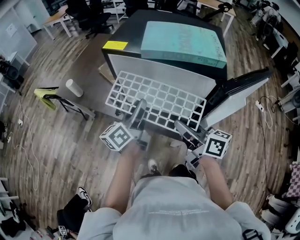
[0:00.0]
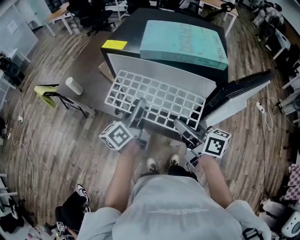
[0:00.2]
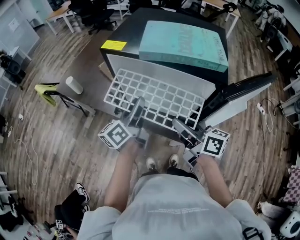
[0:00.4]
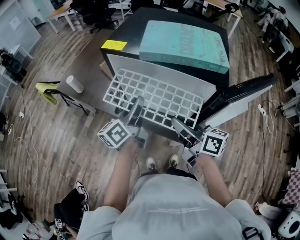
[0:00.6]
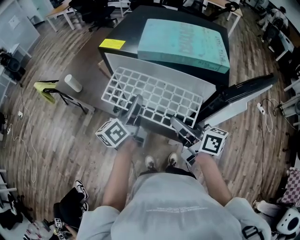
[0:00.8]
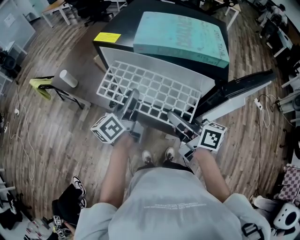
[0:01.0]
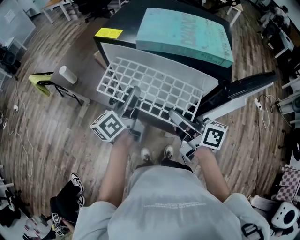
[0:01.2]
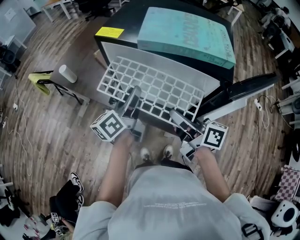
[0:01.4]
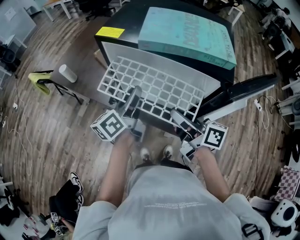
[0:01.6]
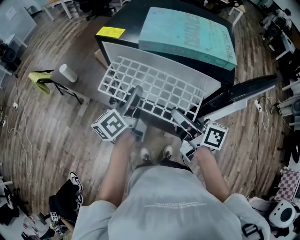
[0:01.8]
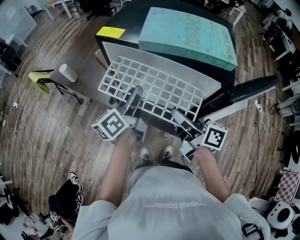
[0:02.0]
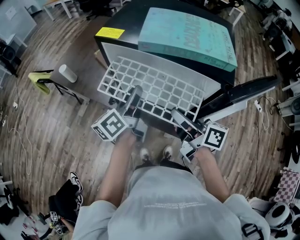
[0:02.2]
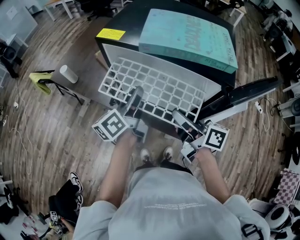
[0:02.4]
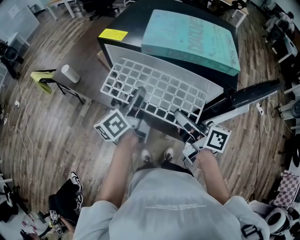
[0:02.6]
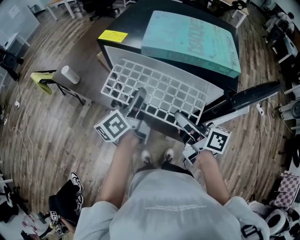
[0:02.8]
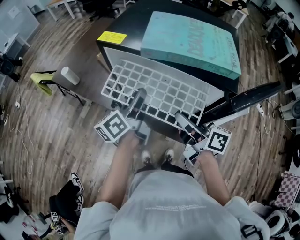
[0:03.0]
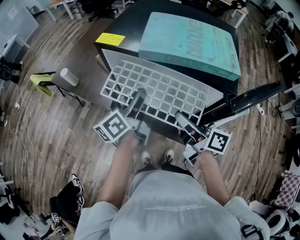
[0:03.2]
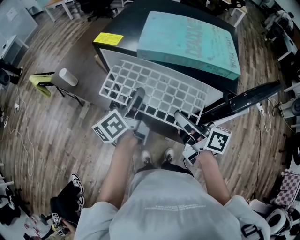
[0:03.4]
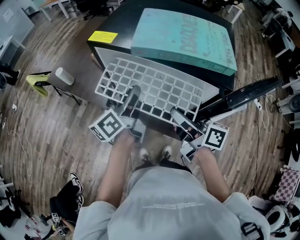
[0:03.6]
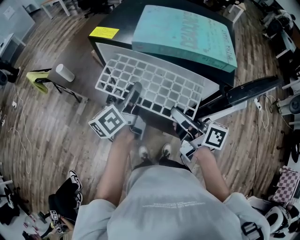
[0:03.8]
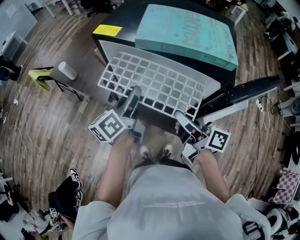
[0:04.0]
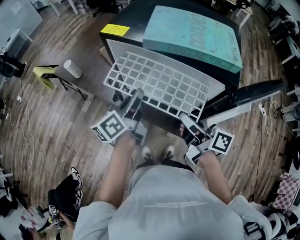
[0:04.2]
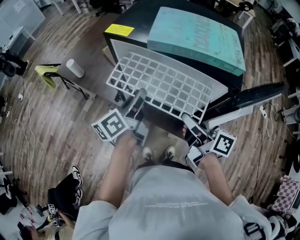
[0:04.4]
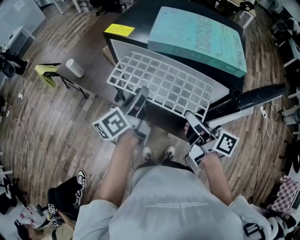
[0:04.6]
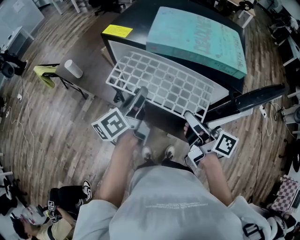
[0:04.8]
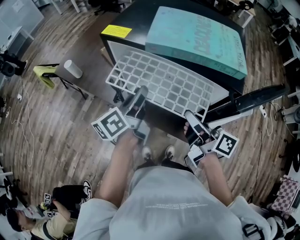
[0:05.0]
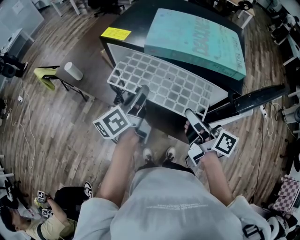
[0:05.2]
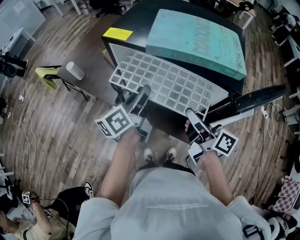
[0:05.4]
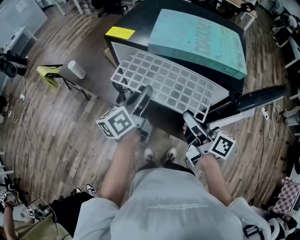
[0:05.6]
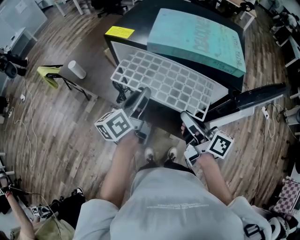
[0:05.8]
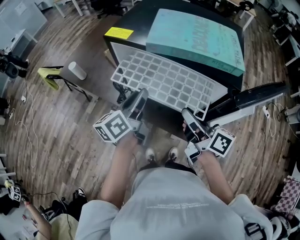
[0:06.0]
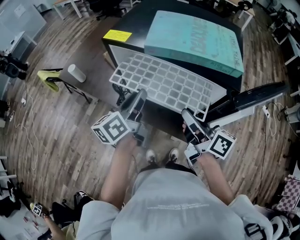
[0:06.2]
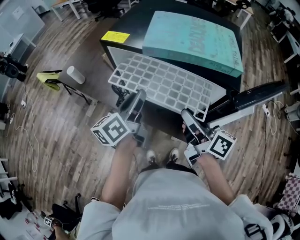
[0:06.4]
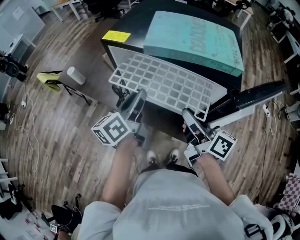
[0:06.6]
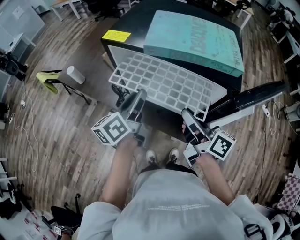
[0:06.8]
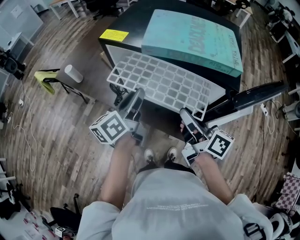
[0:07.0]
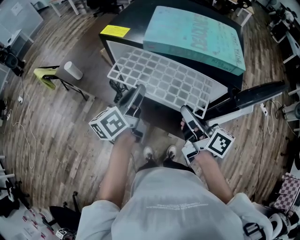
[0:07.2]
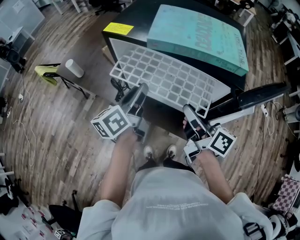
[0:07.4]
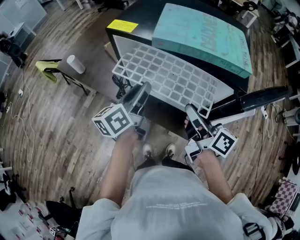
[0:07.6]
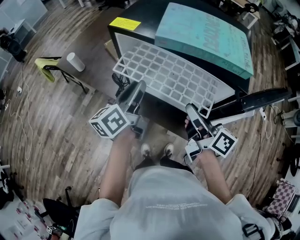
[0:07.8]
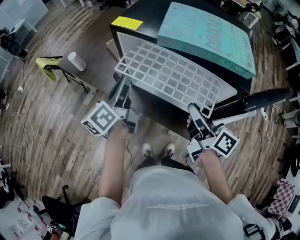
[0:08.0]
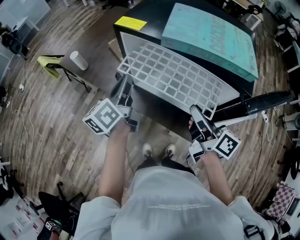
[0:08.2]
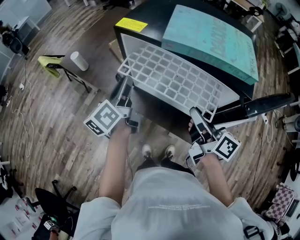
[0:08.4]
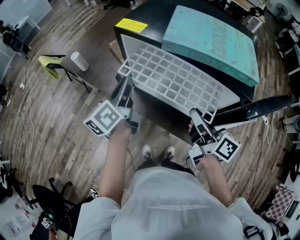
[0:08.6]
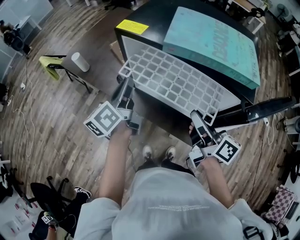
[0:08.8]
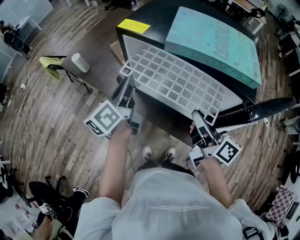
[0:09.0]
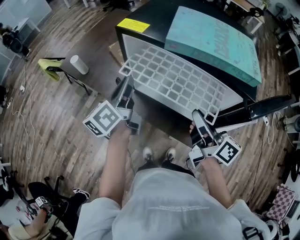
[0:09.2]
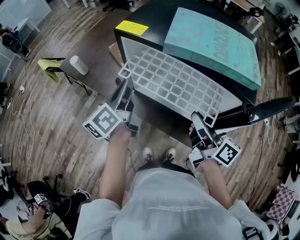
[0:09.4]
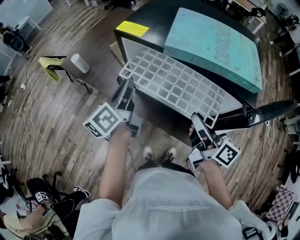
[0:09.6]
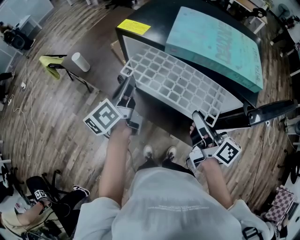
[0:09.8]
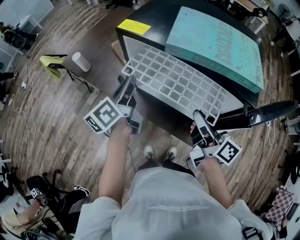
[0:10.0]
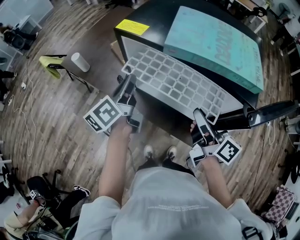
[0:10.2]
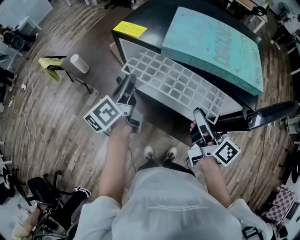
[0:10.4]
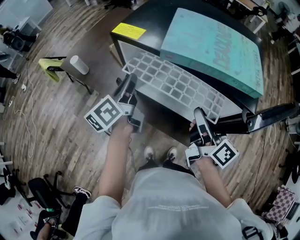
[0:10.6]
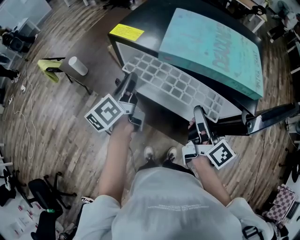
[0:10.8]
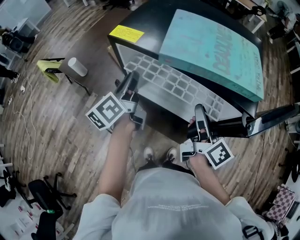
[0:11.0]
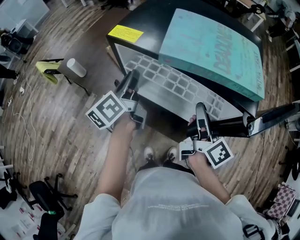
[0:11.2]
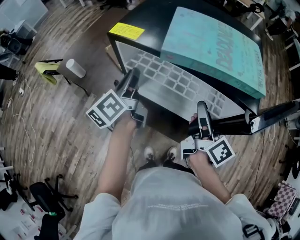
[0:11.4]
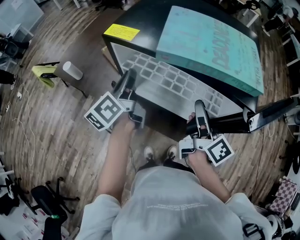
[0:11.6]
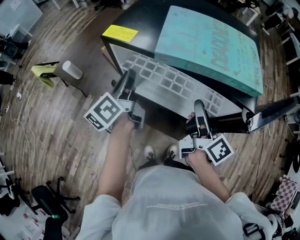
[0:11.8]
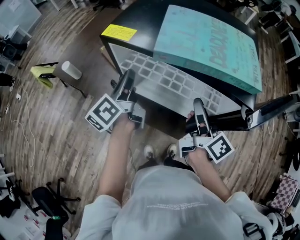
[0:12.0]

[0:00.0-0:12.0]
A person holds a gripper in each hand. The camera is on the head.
0:00.0 to 0:04.4: There are only small adjustments of the grippers.
0:04.4 to 0:07.6: The grippers stay close to where they were, moving slightly.
0:07.6 to 0:09.0: The left gripper shifts about 10 cm to the left.
0:09.0 to 0:10.4: The grippers move only a little.
0:10.4 to 0:12.0: The grippers move only a little.

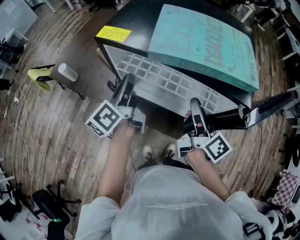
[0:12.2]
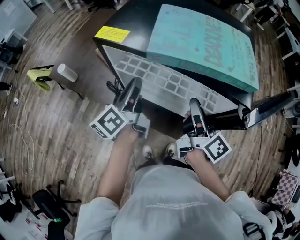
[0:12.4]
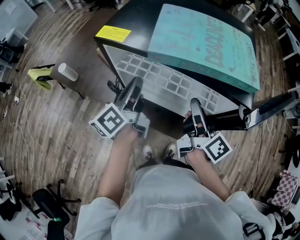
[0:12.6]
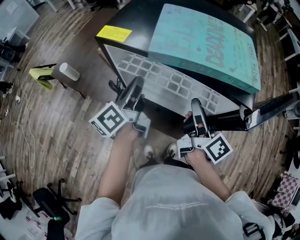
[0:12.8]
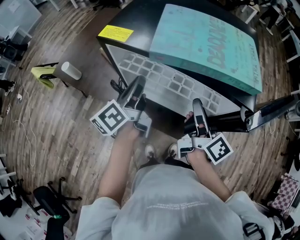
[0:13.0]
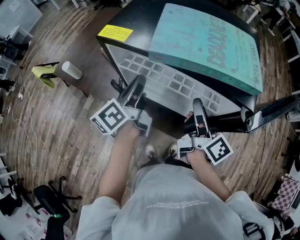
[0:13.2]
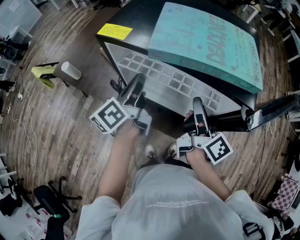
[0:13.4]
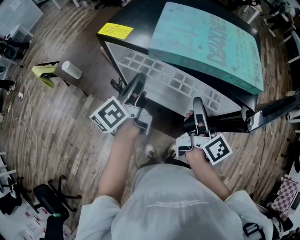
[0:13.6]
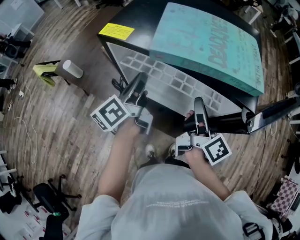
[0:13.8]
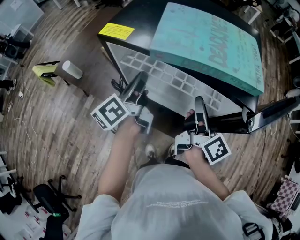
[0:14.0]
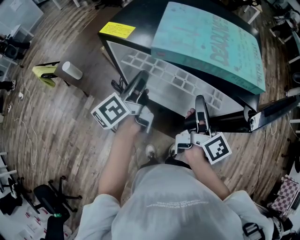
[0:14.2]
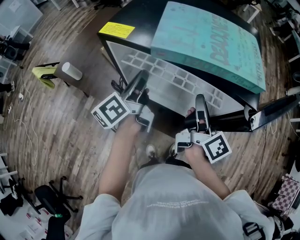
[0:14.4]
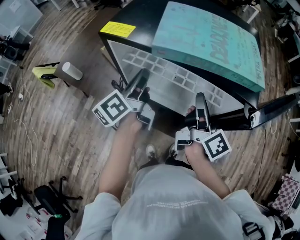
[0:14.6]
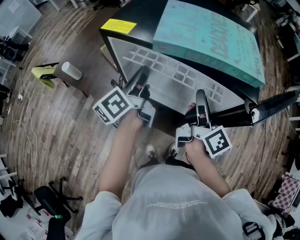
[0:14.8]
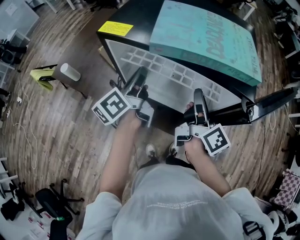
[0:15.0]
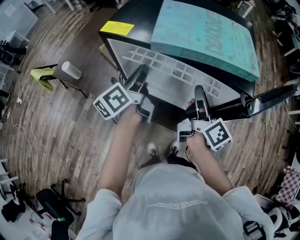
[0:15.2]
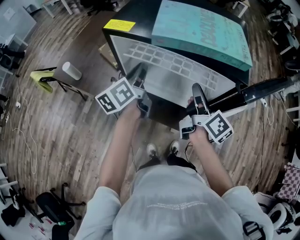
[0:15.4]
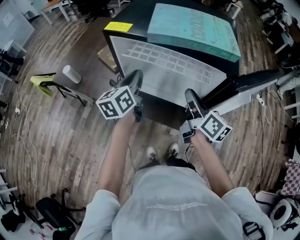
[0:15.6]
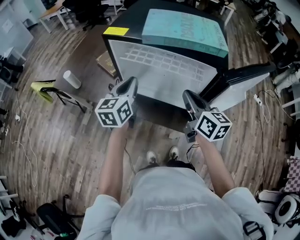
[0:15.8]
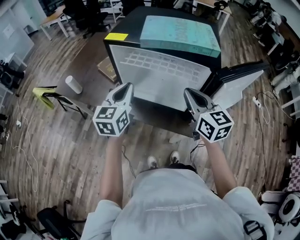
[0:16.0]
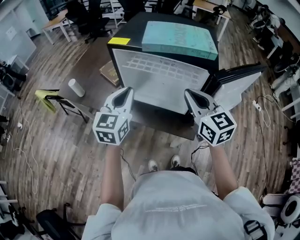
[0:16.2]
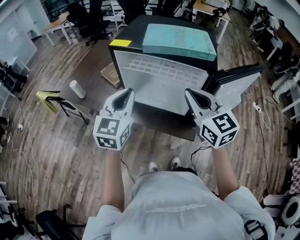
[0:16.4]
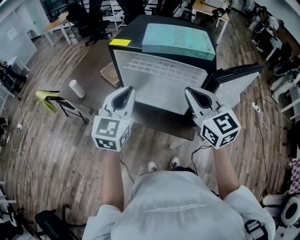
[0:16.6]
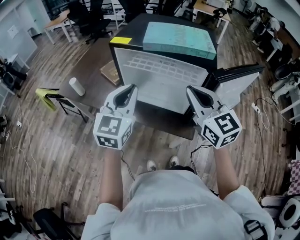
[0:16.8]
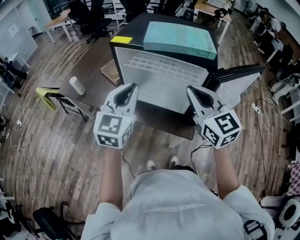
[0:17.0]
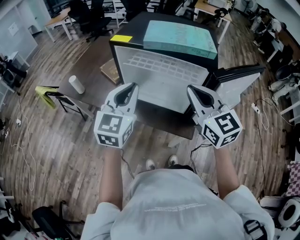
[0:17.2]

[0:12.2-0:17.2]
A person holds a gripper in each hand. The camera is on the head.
0:12.2 to 0:13.8: The grippers make only small movements.
0:13.8 to 0:15.6: The left gripper turns by roughly 30 degrees.
0:15.6 to 0:17.2: The left gripper goes some 15 cm backward and upward, and twists roughly 40 degrees clockwise, seen from behind. The right gripper travels upward and backward by roughly 15 cm, and twists about 60 degrees counterclockwise, seen from behind.

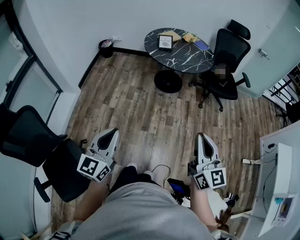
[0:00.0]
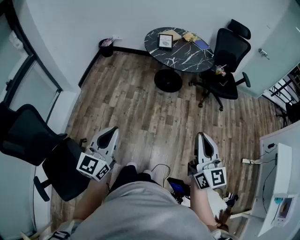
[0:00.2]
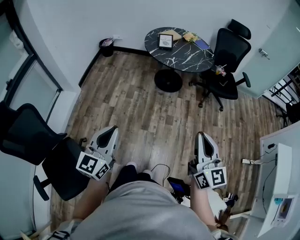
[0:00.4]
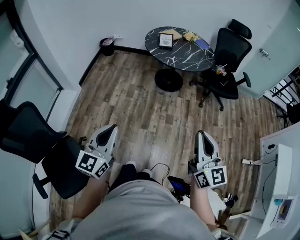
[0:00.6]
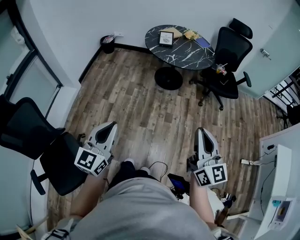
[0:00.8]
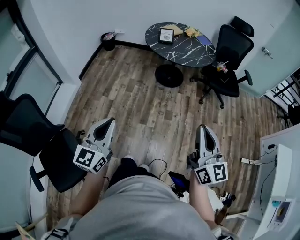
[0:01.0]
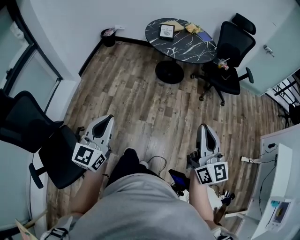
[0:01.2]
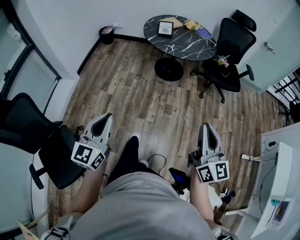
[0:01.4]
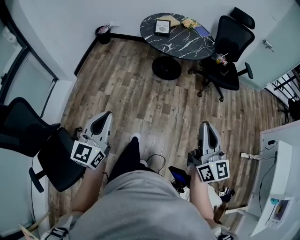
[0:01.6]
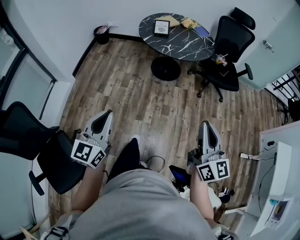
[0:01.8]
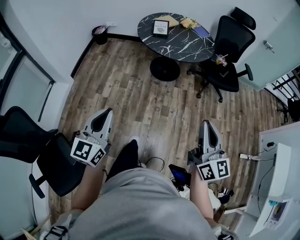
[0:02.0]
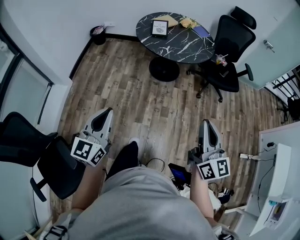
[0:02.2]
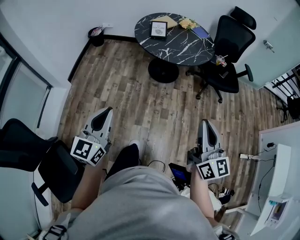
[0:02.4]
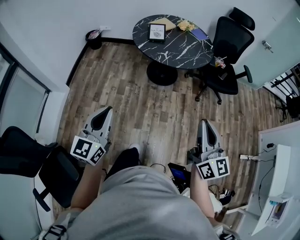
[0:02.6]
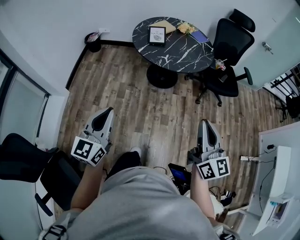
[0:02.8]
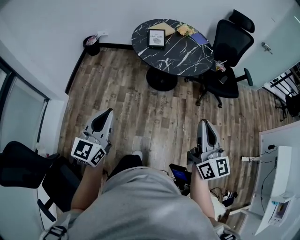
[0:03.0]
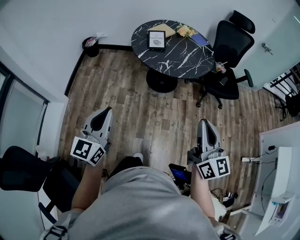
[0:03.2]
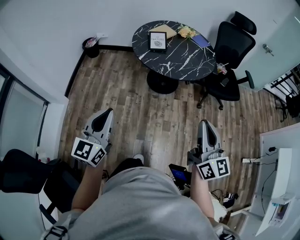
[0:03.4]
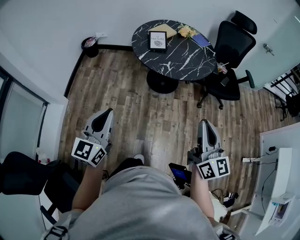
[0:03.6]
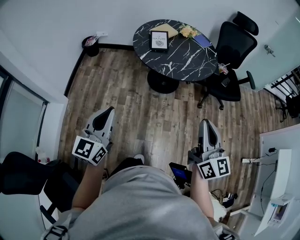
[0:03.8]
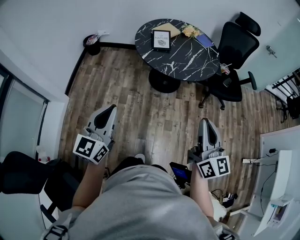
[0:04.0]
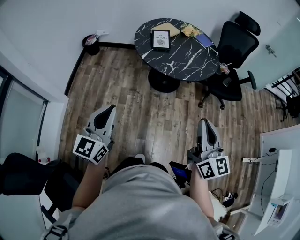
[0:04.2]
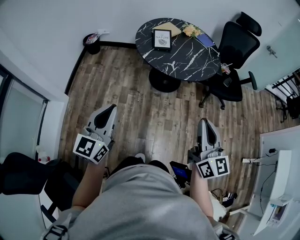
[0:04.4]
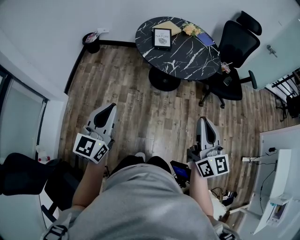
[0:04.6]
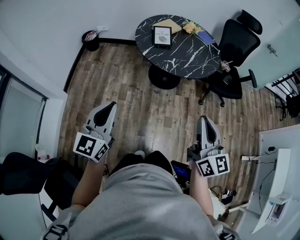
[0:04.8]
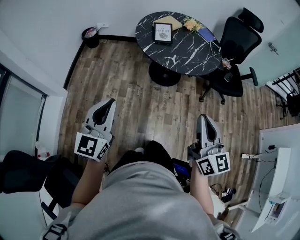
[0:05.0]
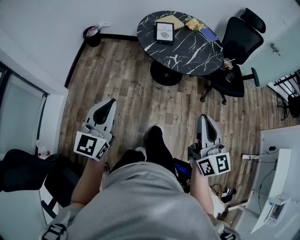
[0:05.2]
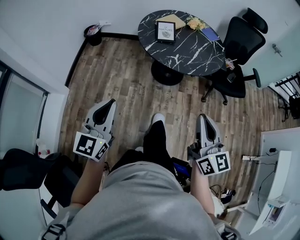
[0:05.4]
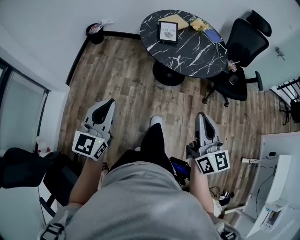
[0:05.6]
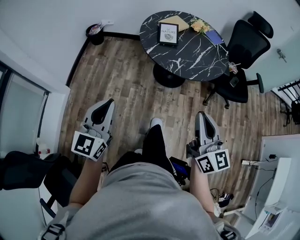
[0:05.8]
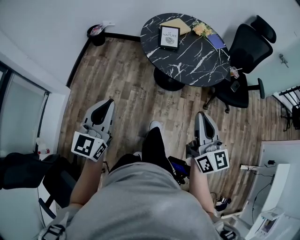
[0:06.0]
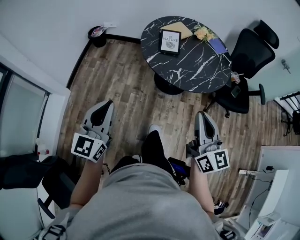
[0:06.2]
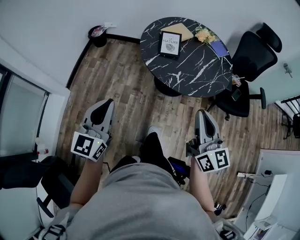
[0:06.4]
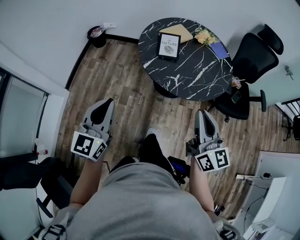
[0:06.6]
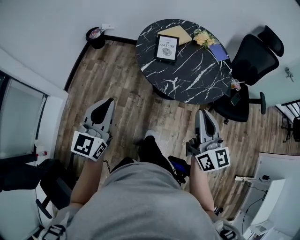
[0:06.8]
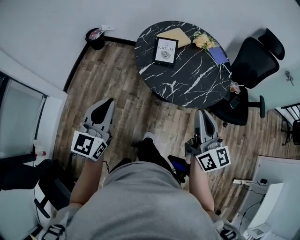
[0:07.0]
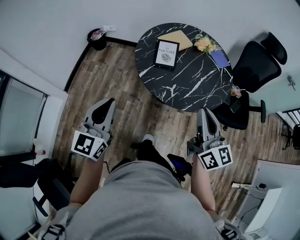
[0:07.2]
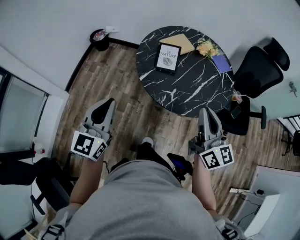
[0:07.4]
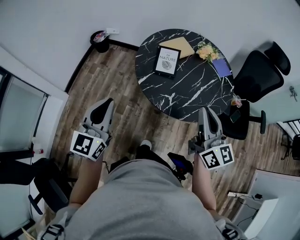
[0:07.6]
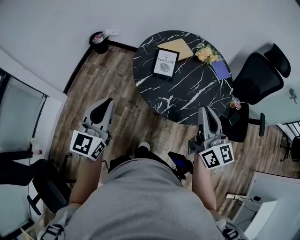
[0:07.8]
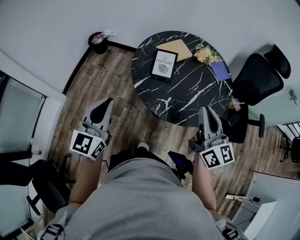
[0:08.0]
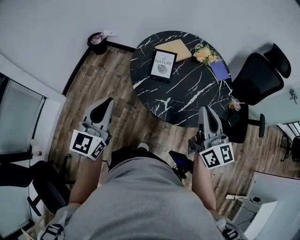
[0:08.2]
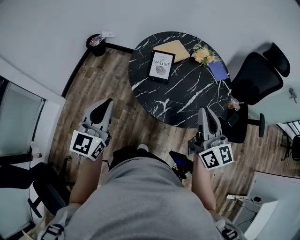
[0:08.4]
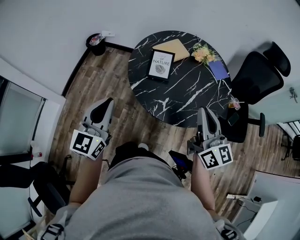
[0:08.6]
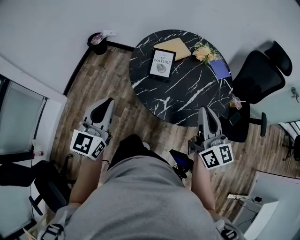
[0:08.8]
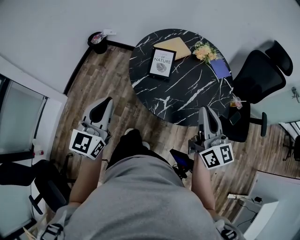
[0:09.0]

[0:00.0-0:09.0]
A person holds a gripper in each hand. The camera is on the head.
0:00.0 to 0:01.6: The right gripper goes roughly 5 cm to the right. The left gripper moves about 5 cm.
0:01.6 to 0:03.0: The two grippers go some 20 cm forward.
0:03.0 to 0:04.4: The grippers both shift forward by some 5 cm.
0:04.4 to 0:06.0: The grippers both shift forward by approximately 10 cm.
0:06.0 to 0:07.6: The right gripper goes about 25 cm forward. Meanwhile the left gripper moves forward and to the right, approximately 20 cm.
0:07.6 to 0:09.0: The right gripper moves approximately 5 cm, while the left gripper shifts by some 5 cm.
